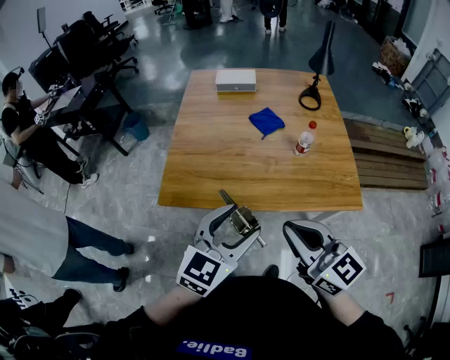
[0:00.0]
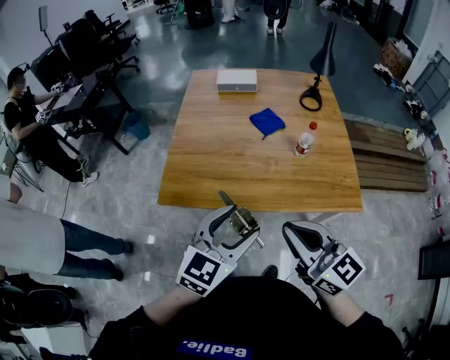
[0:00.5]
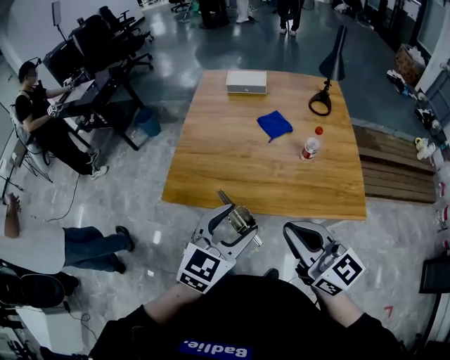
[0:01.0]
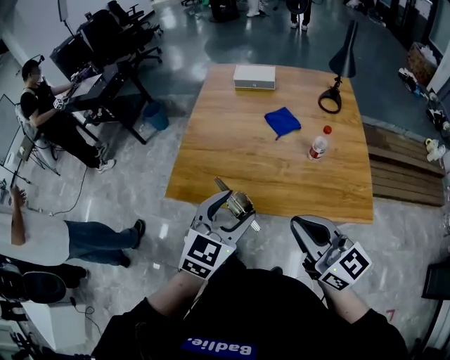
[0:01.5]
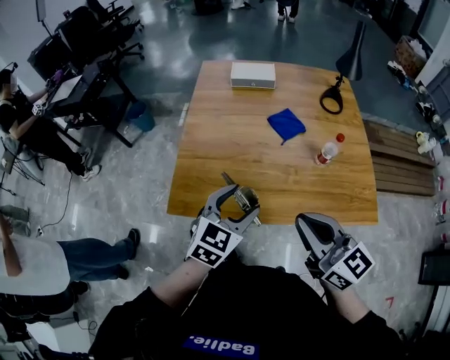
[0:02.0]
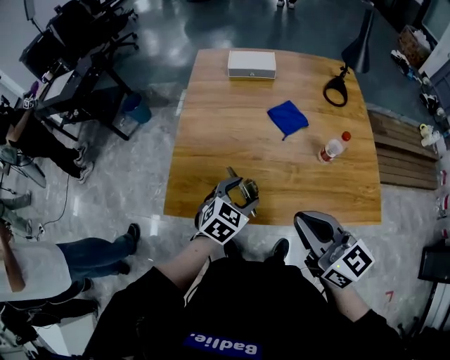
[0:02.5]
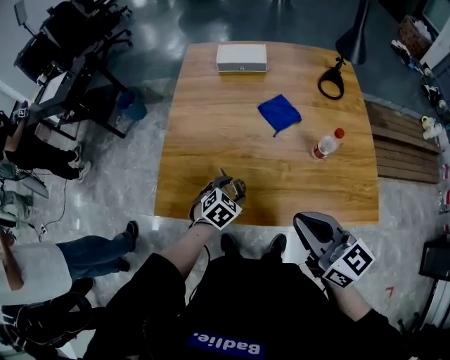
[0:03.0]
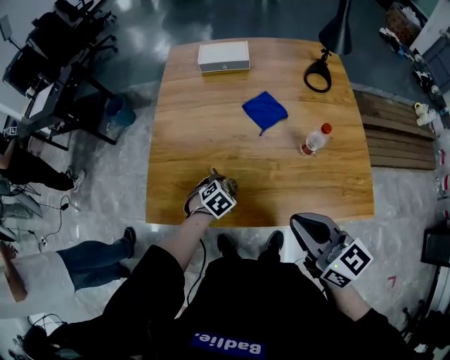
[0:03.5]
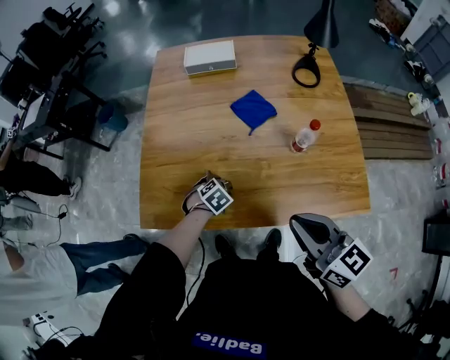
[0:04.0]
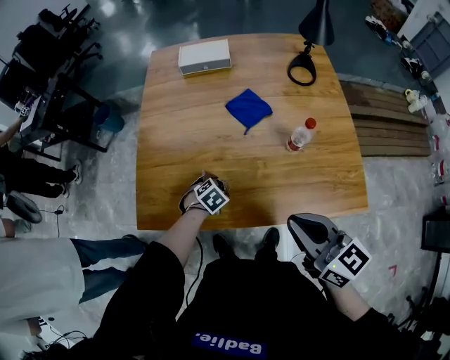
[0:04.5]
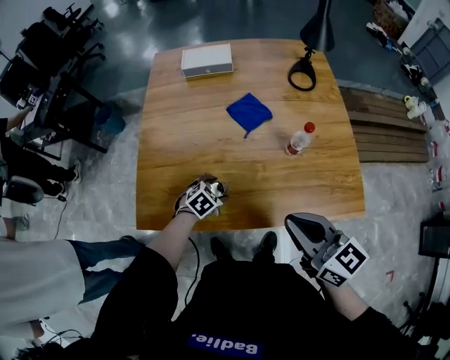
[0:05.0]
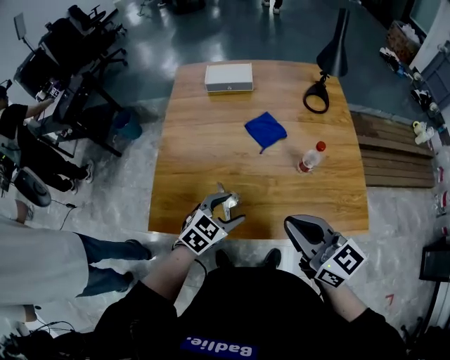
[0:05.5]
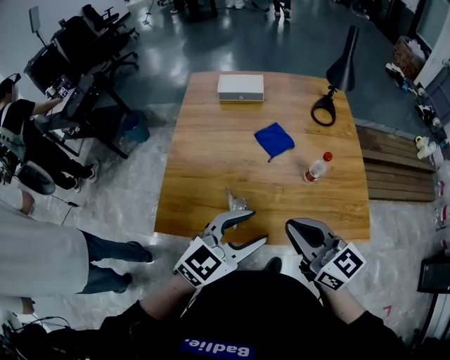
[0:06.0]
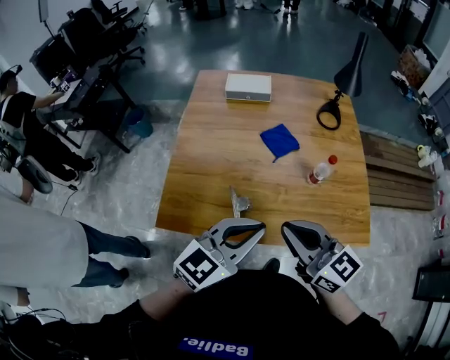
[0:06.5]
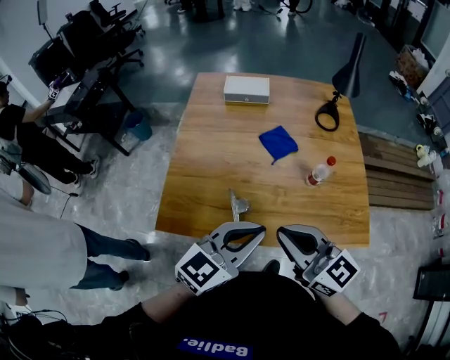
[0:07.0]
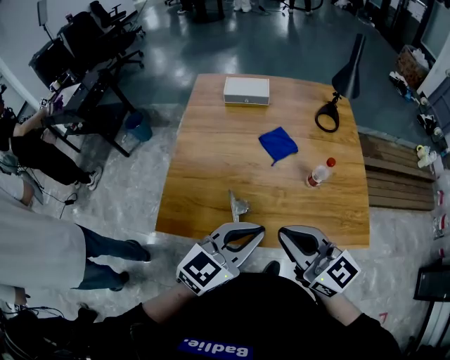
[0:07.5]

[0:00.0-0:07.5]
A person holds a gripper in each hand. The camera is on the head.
0:00.0 to 0:02.0: The left gripper heads forward and downward, covering roughly 15 cm; the right gripper heads forward, covering some 10 cm.
0:02.0 to 0:04.0: The left gripper moves downward, about 30 cm, and tips its fingers downward by approximately 50 degrees, while the right gripper goes approximately 15 cm to the right, downward and forward.
0:04.0 to 0:05.5: The left gripper travels upward by about 20 cm, and angles its fingers upward, by approximately 30 degrees.
0:05.5 to 0:07.5: The right gripper shifts roughly 5 cm to the left, while the left gripper is displaced upward by some 20 cm, swivels about 30 degrees, and closes up.

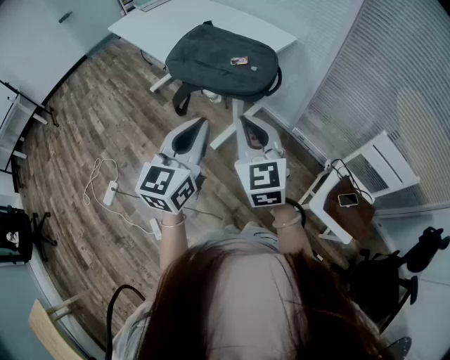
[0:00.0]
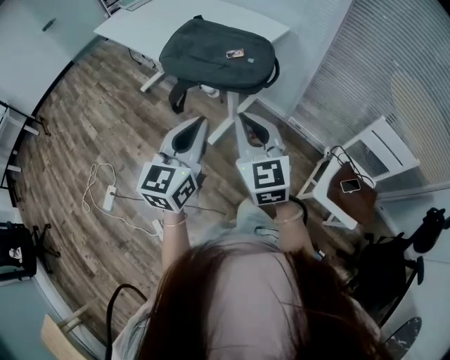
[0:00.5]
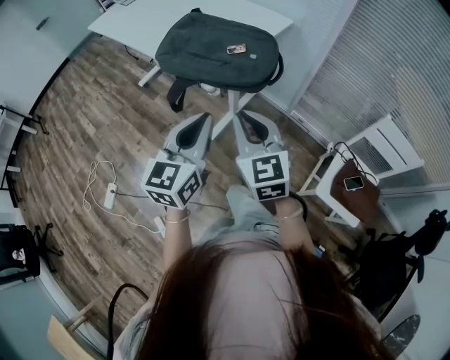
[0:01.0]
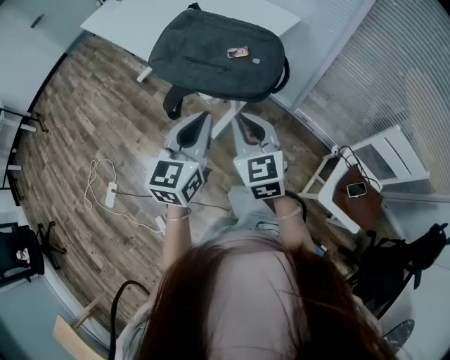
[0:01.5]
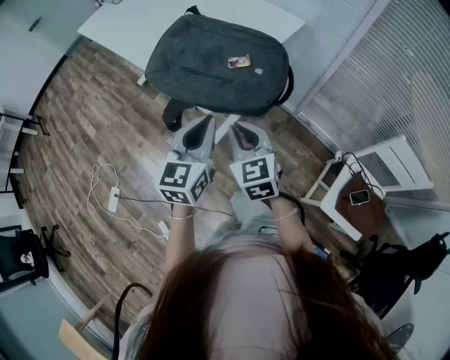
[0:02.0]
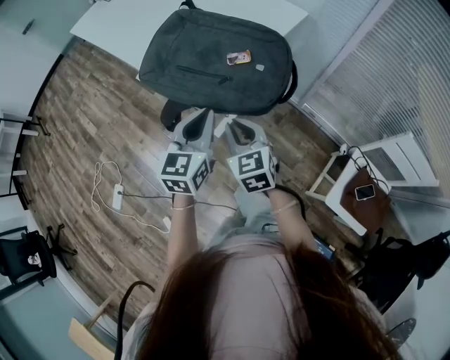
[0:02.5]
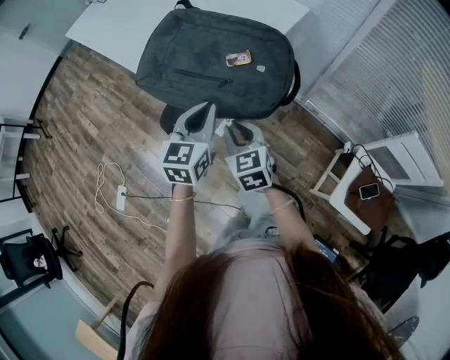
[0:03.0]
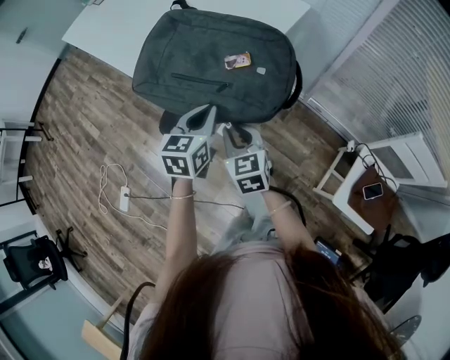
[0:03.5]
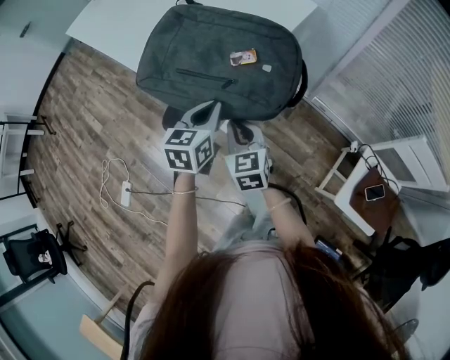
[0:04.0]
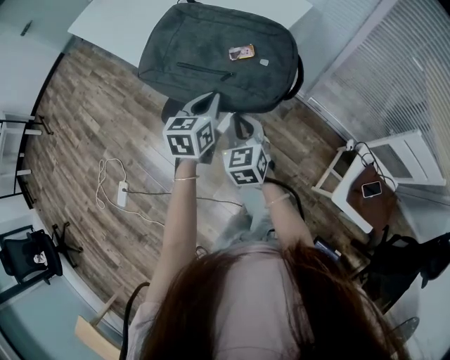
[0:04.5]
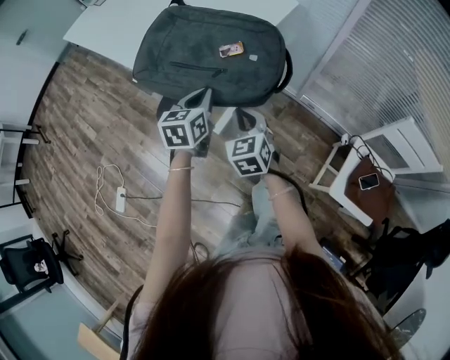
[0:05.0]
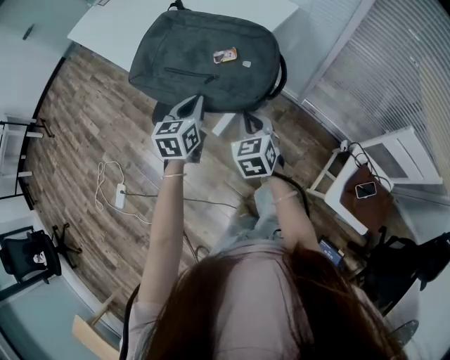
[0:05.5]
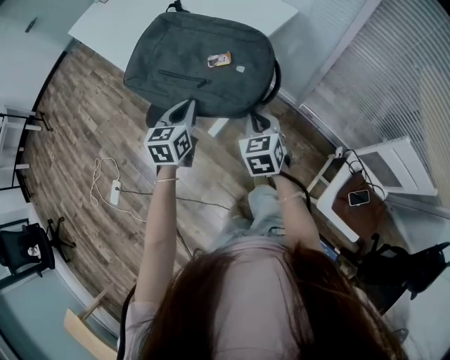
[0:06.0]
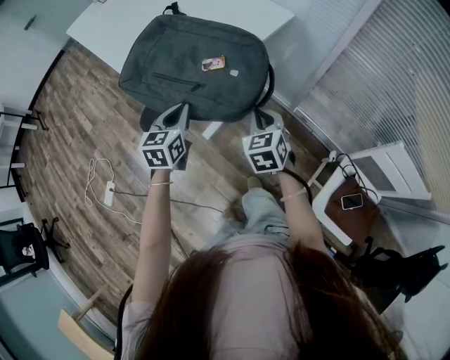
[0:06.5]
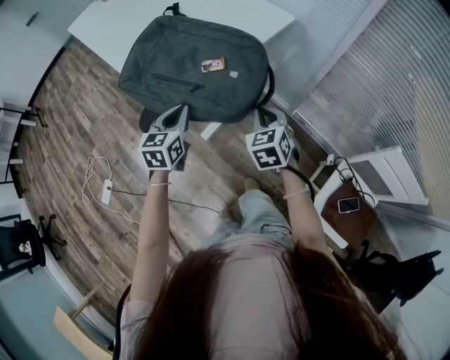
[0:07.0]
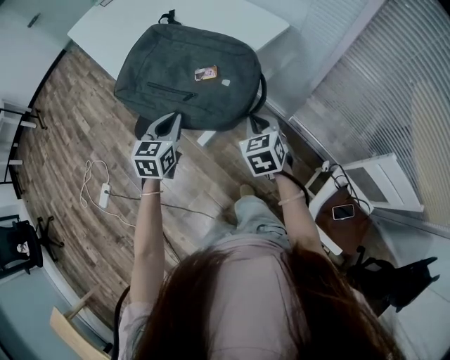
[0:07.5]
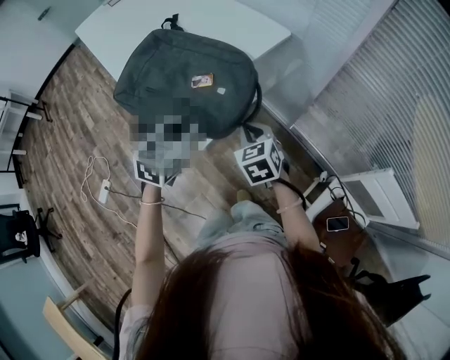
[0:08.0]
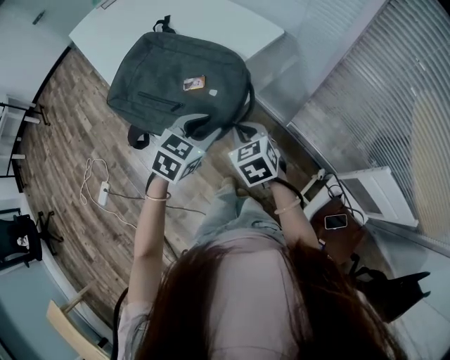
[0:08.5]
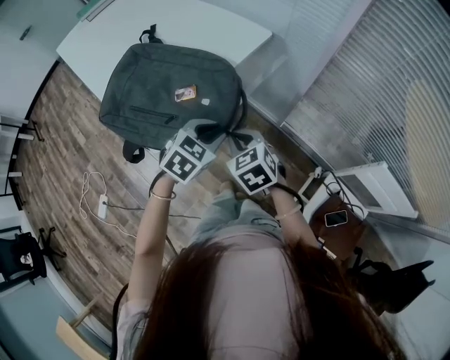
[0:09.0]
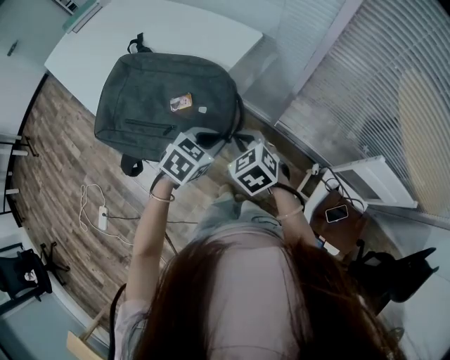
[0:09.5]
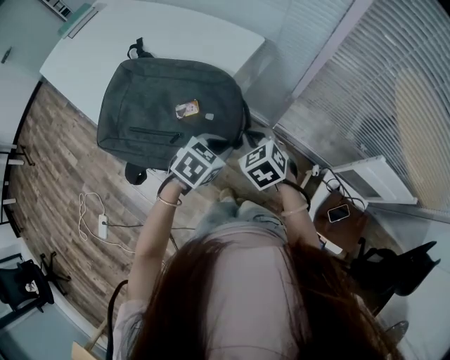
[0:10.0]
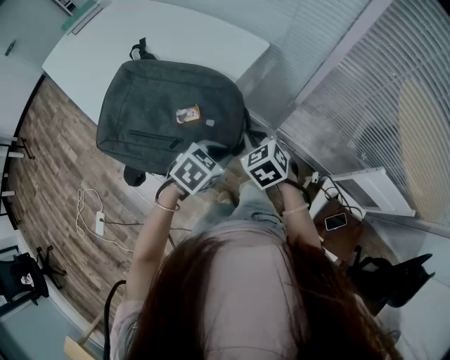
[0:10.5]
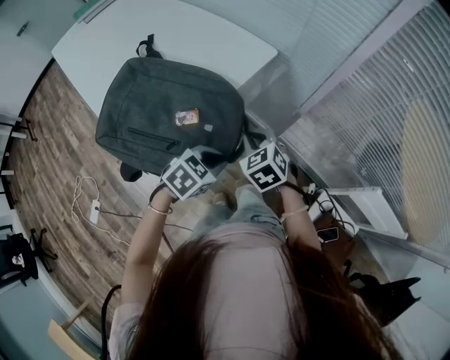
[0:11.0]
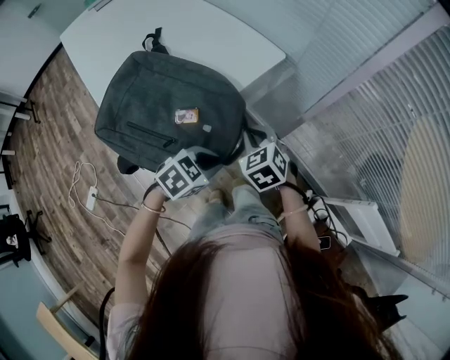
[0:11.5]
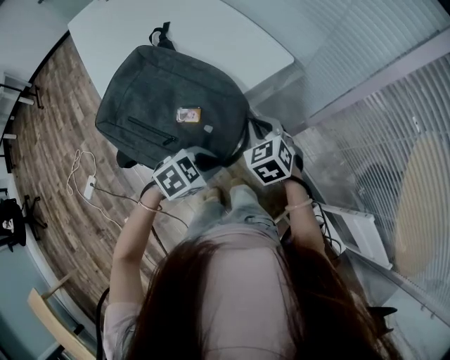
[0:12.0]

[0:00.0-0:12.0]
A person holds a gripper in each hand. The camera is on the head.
0:00.0 to 0:02.0: Both grippers move forward and downward, about 20 cm.
0:02.0 to 0:04.0: The right gripper shifts roughly 10 cm downward and forward. Meanwhile the left gripper travels forward and downward by about 15 cm.
0:04.0 to 0:06.0: The right gripper is displaced to the right by some 15 cm.
0:06.0 to 0:08.0: The right gripper moves some 5 cm, while the left gripper goes about 10 cm to the right and upward.
0:08.0 to 0:10.0: The right gripper travels forward by roughly 5 cm; the left gripper shifts some 15 cm to the right and downward, and changes its angle by approximately 40 degrees.
0:10.0 to 0:12.0: The right gripper is displaced forward by approximately 10 cm.

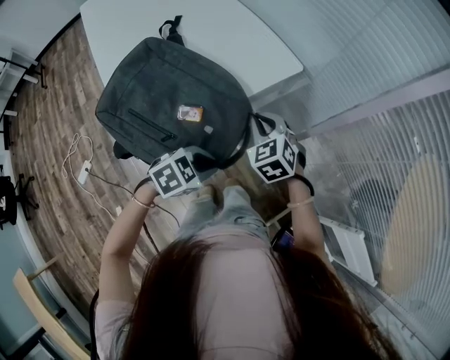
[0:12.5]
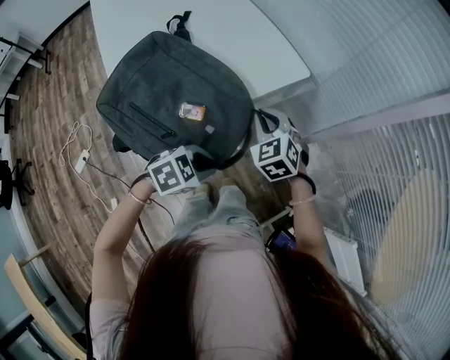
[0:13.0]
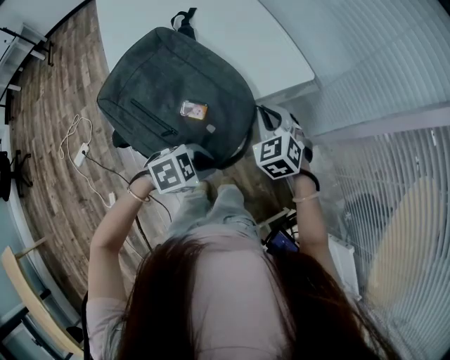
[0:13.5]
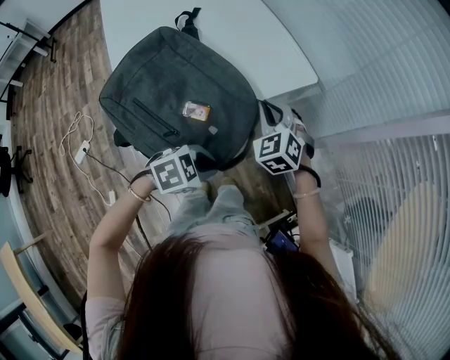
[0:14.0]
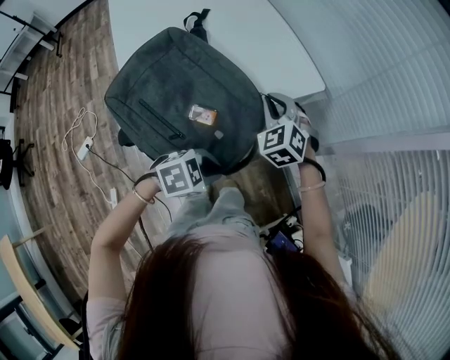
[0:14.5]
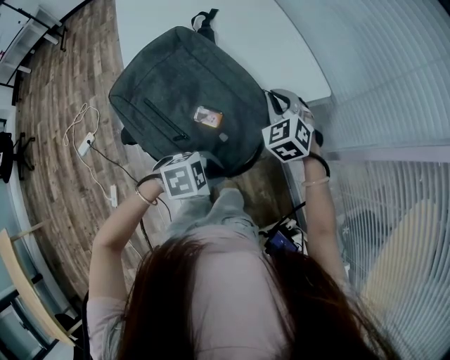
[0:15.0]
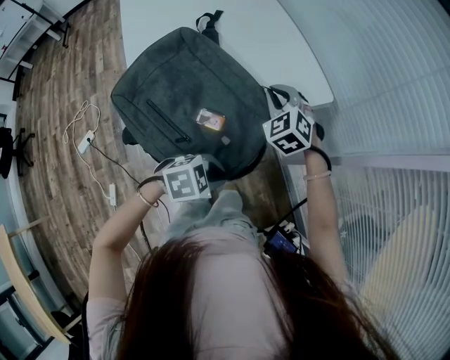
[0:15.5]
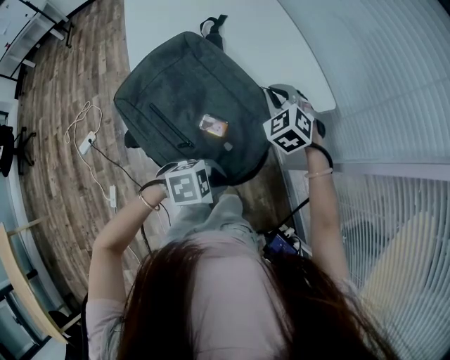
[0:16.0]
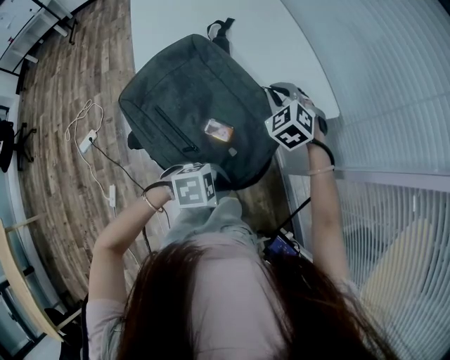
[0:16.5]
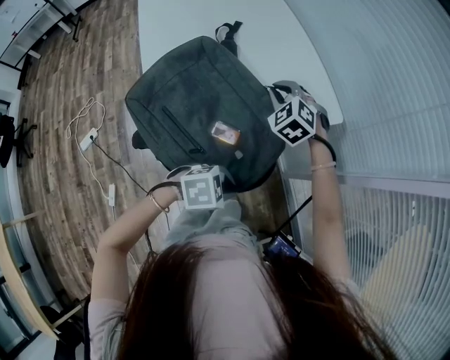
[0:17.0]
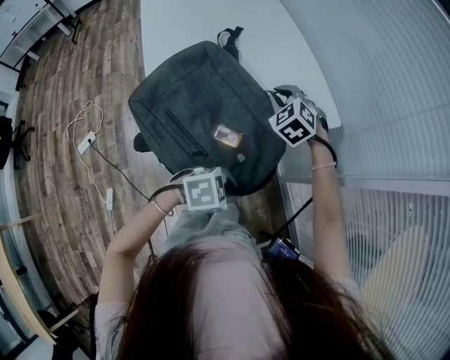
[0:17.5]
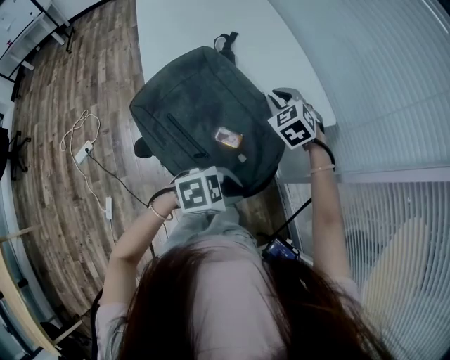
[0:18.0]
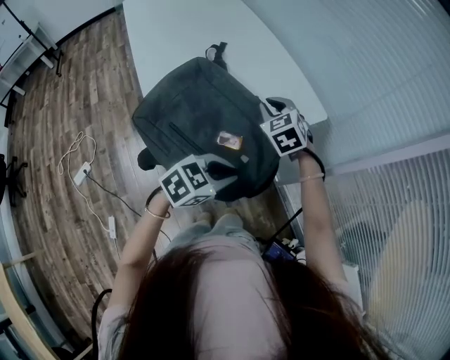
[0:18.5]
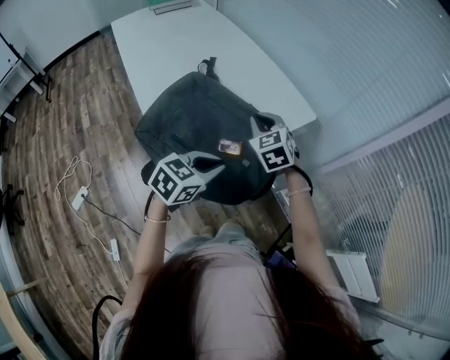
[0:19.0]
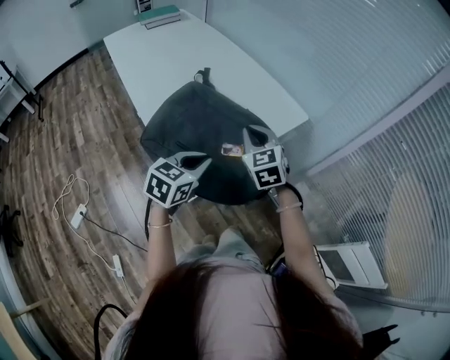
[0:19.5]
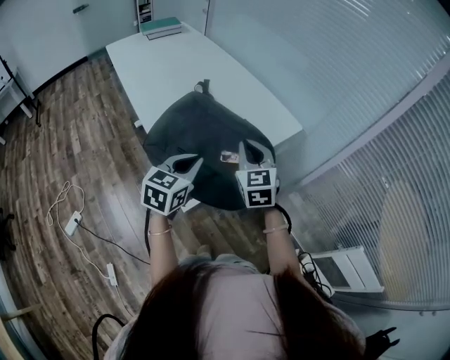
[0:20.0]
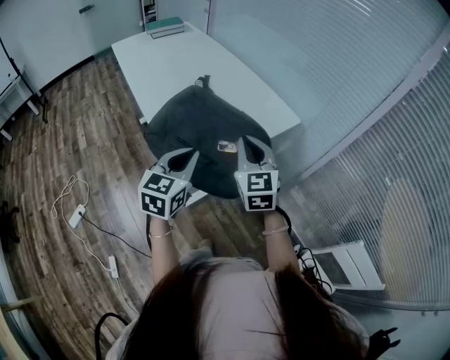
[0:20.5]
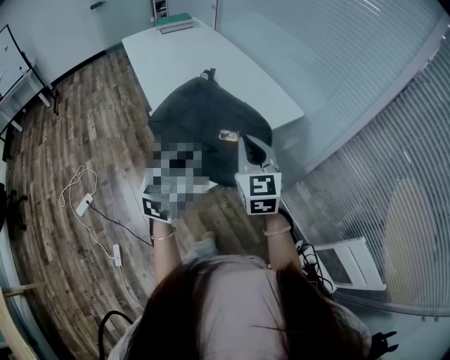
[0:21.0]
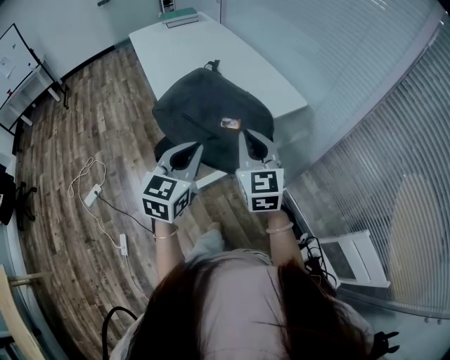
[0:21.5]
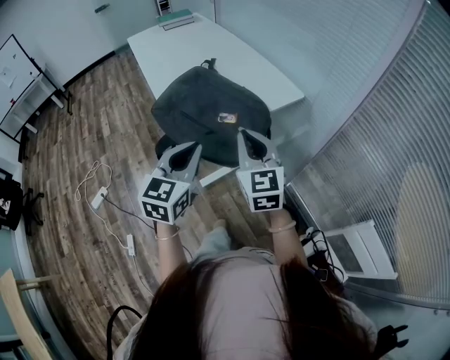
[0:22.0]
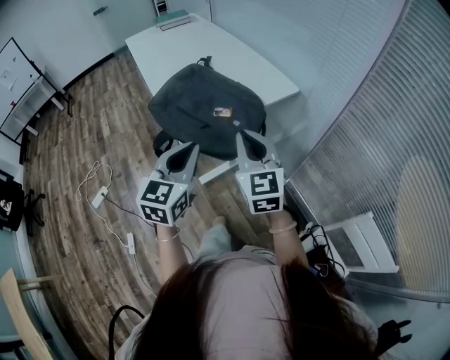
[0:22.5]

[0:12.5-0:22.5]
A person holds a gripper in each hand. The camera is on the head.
0:12.5 to 0:14.5: The right gripper moves forward and to the left, roughly 10 cm.
0:14.5 to 0:16.5: The right gripper goes roughly 10 cm to the left.
0:16.5 to 0:18.5: The right gripper shifts by roughly 5 cm, and turns by some 20 degrees; the left gripper goes approximately 10 cm upward and to the left, and rotates roughly 20 degrees.
0:18.5 to 0:20.5: The left gripper moves to the left and upward, some 20 cm, and turns by some 40 degrees. The right gripper goes approximately 25 cm backward and upward, and rotates about 30 degrees.
0:20.5 to 0:22.5: The right gripper shifts about 15 cm backward. Meanwhile the left gripper shifts about 15 cm backward and to the right.
